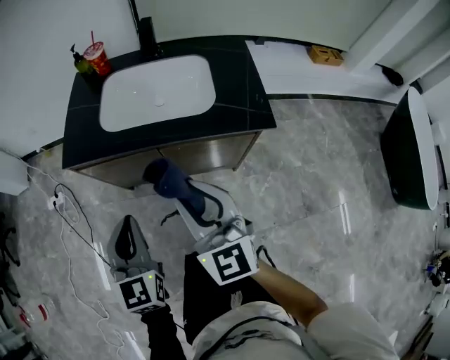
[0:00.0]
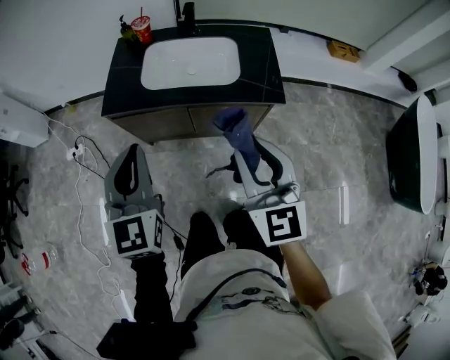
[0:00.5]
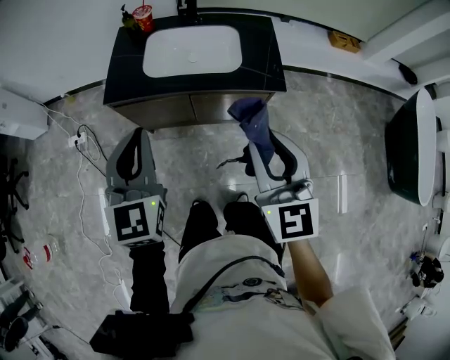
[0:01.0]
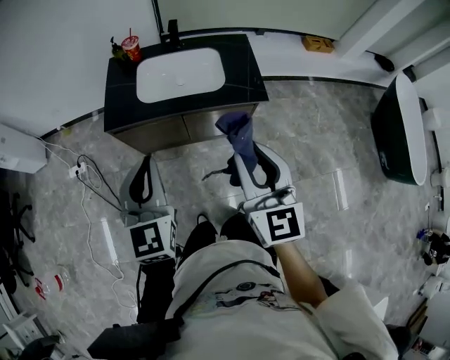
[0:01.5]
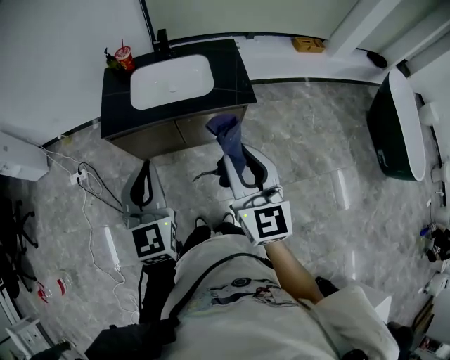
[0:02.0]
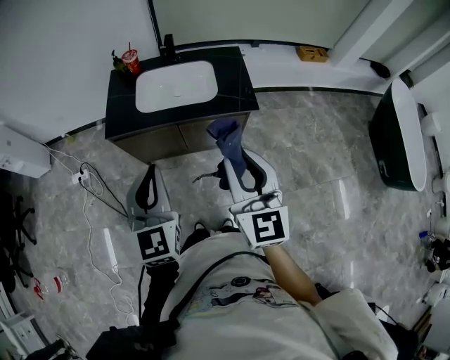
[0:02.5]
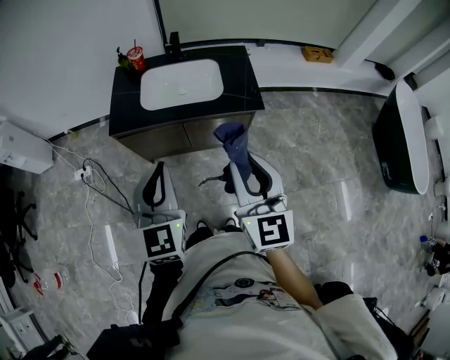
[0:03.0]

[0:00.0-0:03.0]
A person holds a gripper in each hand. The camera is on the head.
0:00.0 to 0:01.5: The left gripper shifts some 25 cm upward. Meanwhile the right gripper moves upward and backward, approximately 25 cm.
0:01.5 to 0:03.0: The left gripper ends up about 5 cm from where it was.

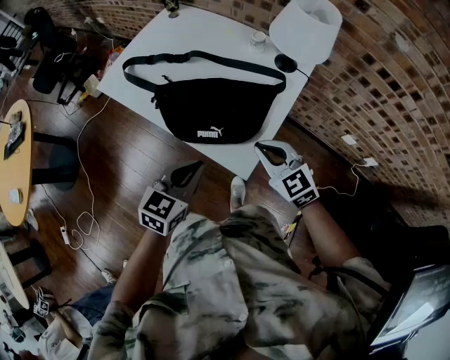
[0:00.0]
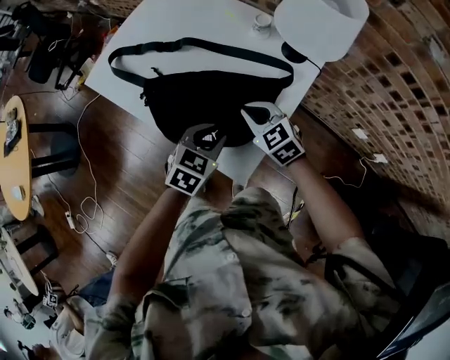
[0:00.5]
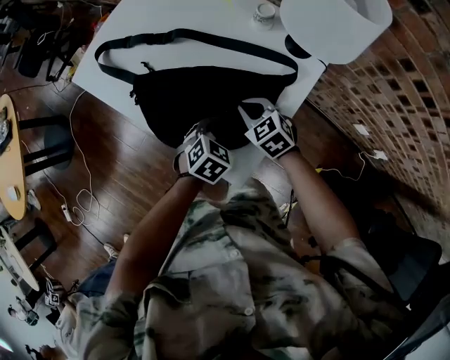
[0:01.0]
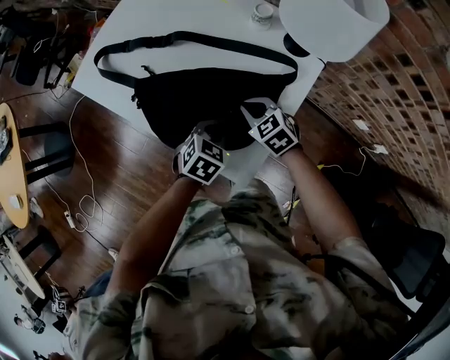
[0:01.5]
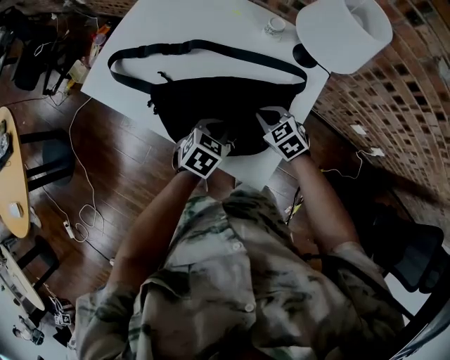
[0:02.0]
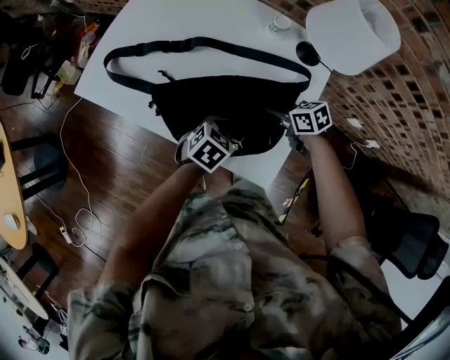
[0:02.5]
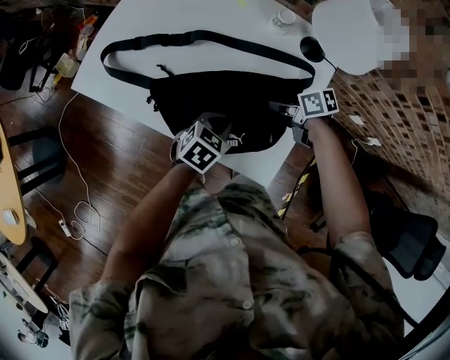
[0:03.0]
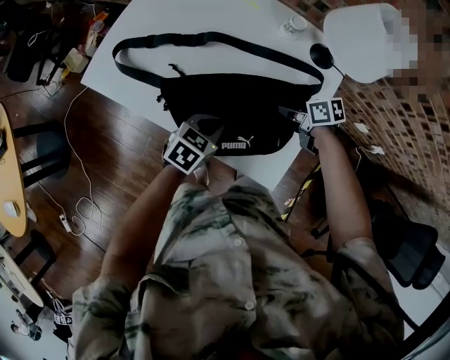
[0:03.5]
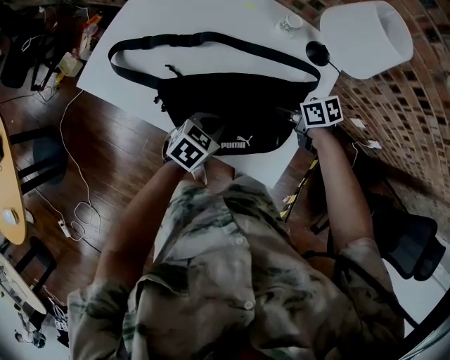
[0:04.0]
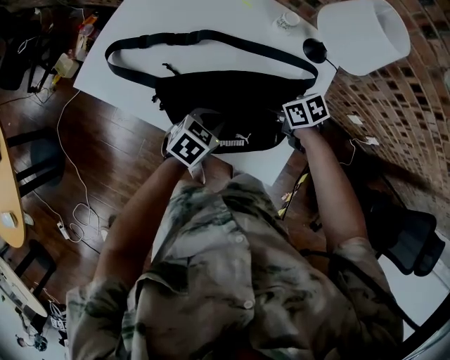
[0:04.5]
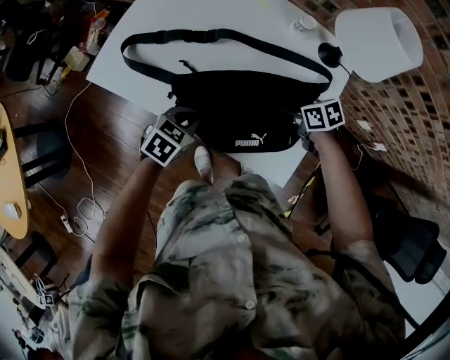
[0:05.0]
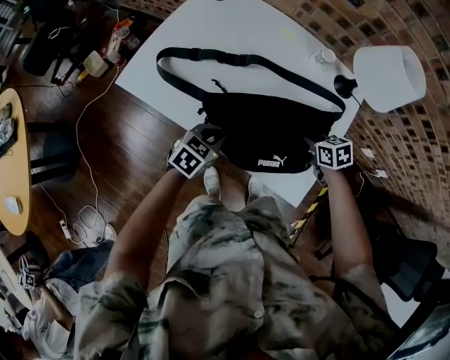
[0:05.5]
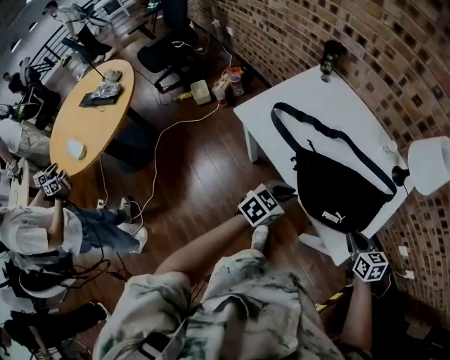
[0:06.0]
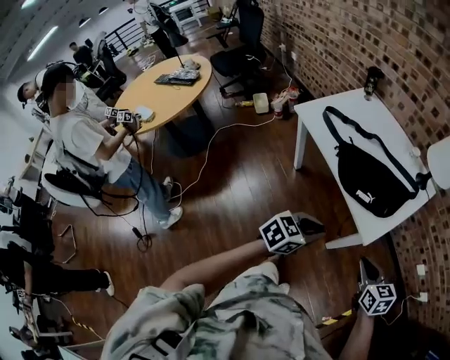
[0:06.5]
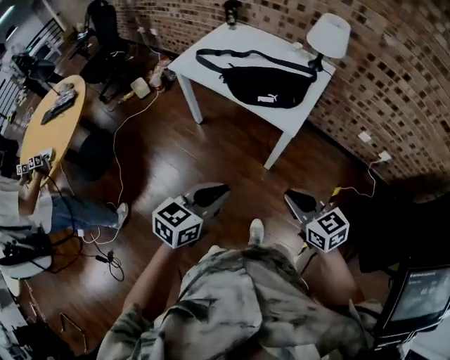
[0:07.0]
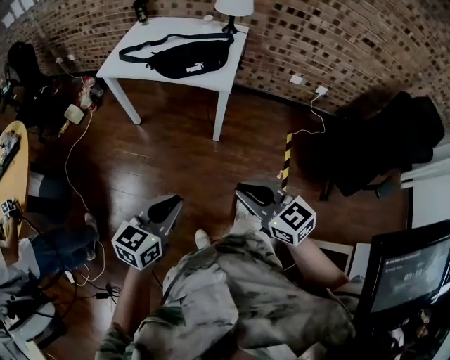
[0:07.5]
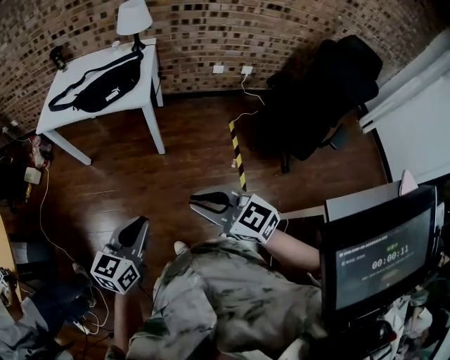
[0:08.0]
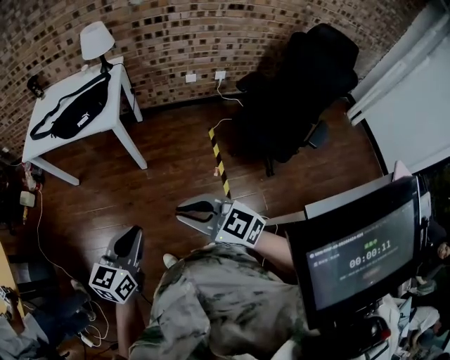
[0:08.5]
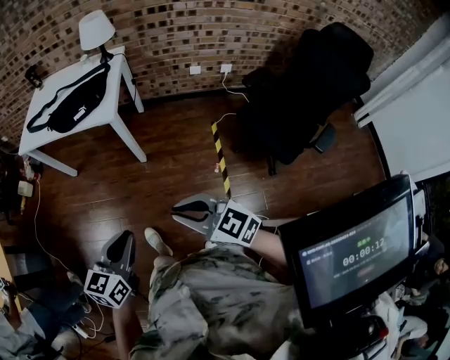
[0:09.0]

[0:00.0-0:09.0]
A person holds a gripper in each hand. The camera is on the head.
0:00.0 to 0:02.0: Both grippers move forward and downward, some 25 cm. The left gripper swivels roughly 20 degrees, while the right gripper turns by approximately 20 degrees.
0:02.0 to 0:04.5: The right gripper turns by about 40 degrees.
0:04.5 to 0:07.0: The pair of grippers is taken about 50 cm. The left gripper turns by some 30 degrees; the right gripper rotates approximately 40 degrees.
0:07.0 to 0:09.0: Both grippers move backward and to the right, approximately 30 cm.

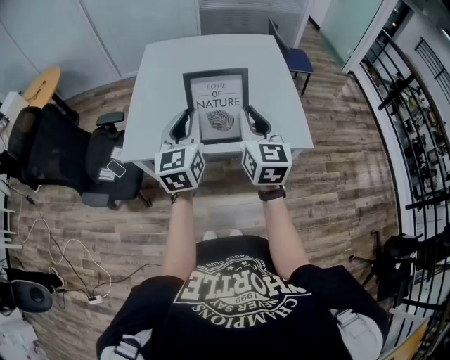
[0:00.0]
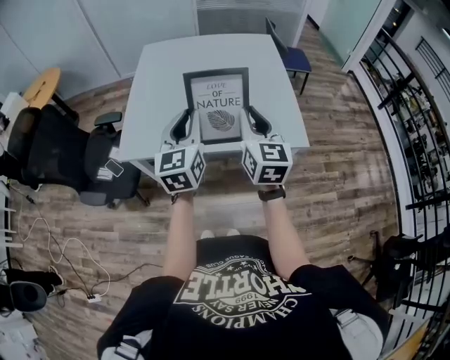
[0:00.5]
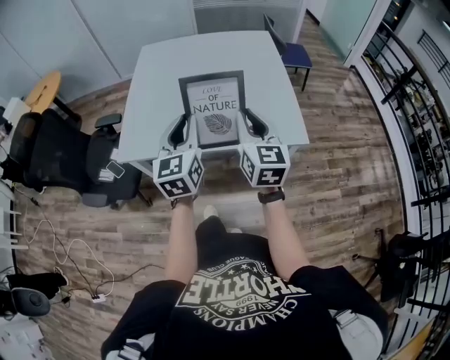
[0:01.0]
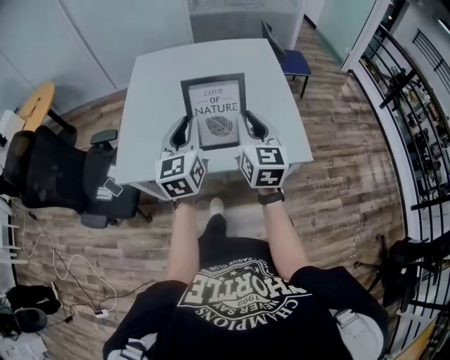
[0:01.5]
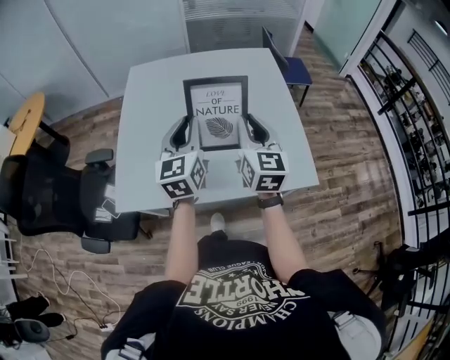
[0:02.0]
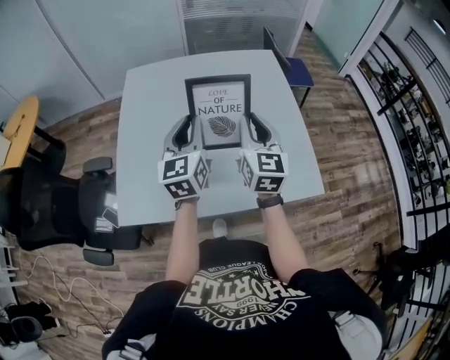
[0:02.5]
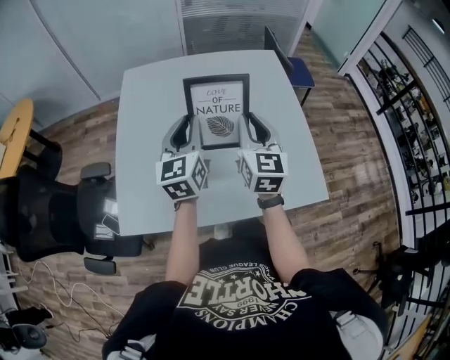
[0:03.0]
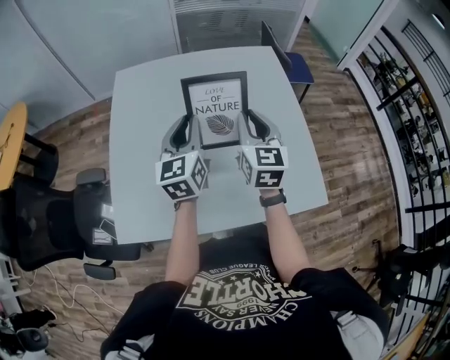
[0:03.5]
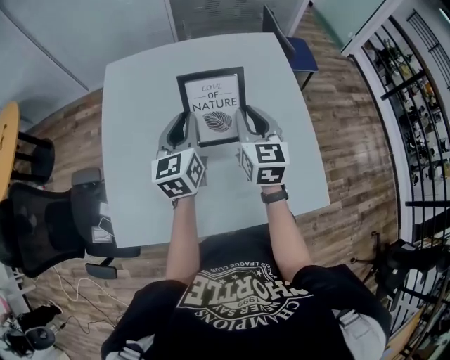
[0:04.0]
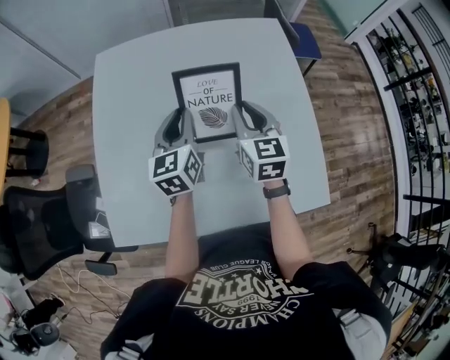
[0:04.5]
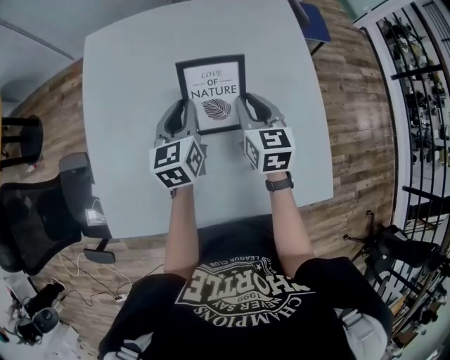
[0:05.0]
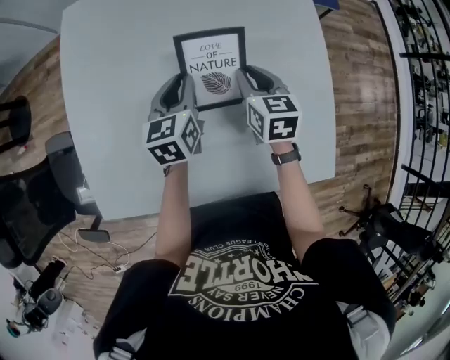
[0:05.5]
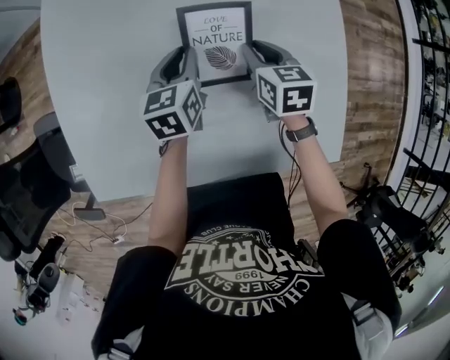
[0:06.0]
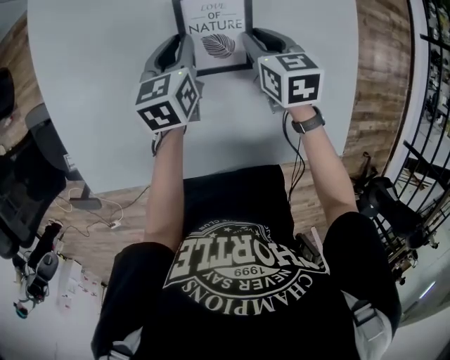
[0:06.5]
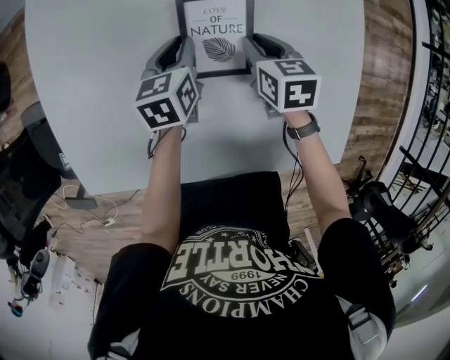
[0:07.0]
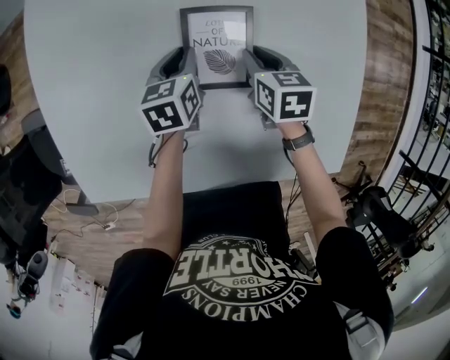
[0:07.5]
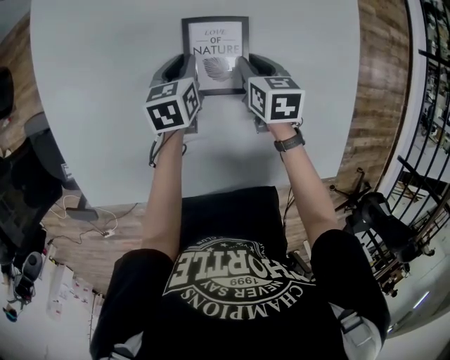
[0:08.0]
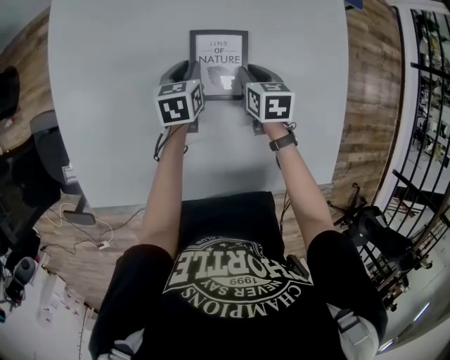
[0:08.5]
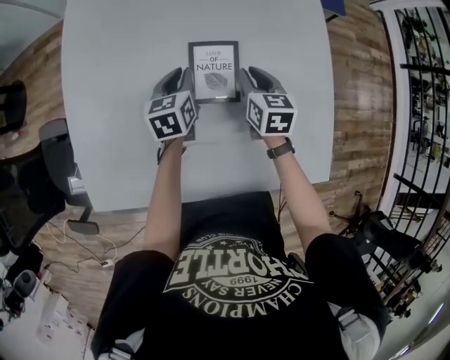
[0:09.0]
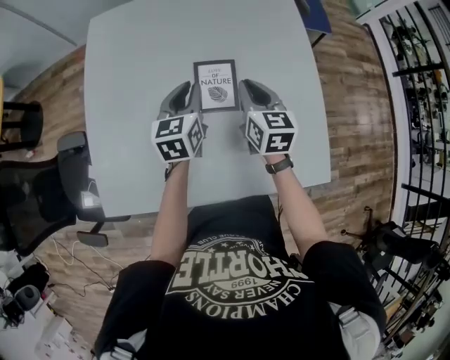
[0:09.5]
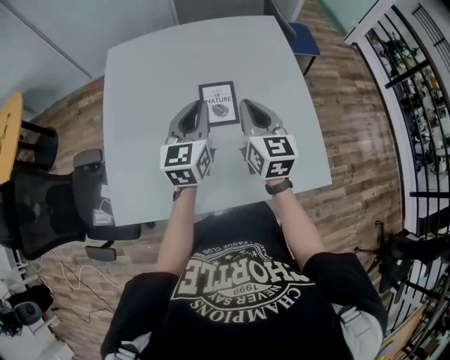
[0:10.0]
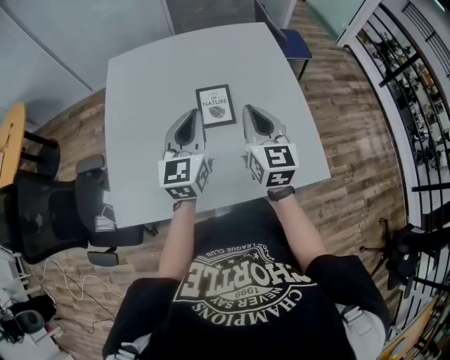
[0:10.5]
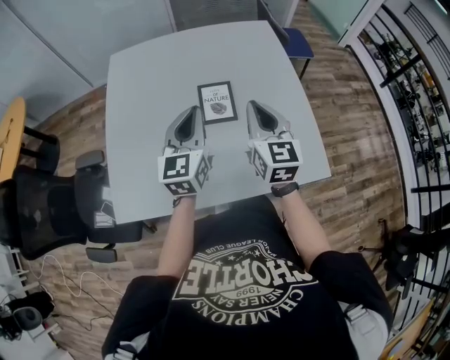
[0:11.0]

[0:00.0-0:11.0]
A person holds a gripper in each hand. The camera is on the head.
0:00.0 to 0:02.0: The grippers both shift forward by approximately 25 cm.
0:02.0 to 0:03.5: The grippers both shift forward by some 15 cm.
0:03.5 to 0:05.5: Both grippers travel together downward and forward, roughly 30 cm. The left gripper swivels about 30 degrees. The right gripper swivels roughly 30 degrees.
0:05.5 to 0:07.5: The grippers both shift downward by about 15 cm.
0:07.5 to 0:09.0: The two grippers go some 10 cm upward.
0:09.0 to 0:11.0: The two grippers go roughly 35 cm upward and backward. The left gripper tips its fingers upward by some 30 degrees. Meanwhile the right gripper tilts its fingers approximately 30 degrees upward.

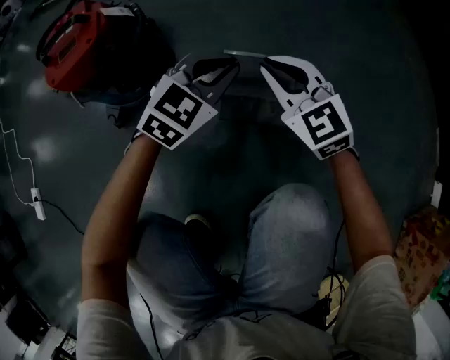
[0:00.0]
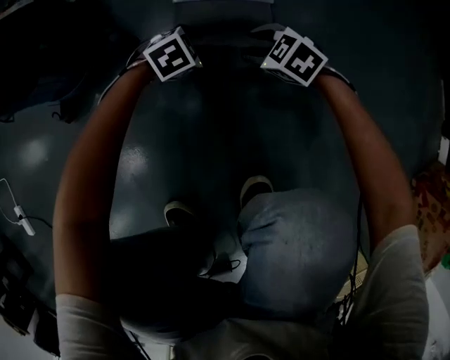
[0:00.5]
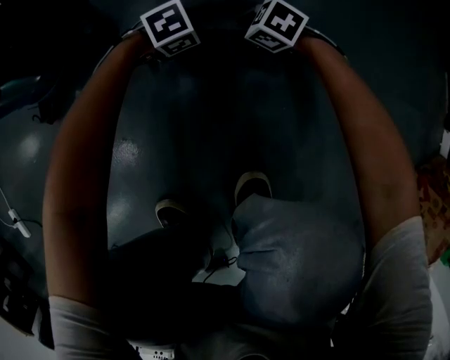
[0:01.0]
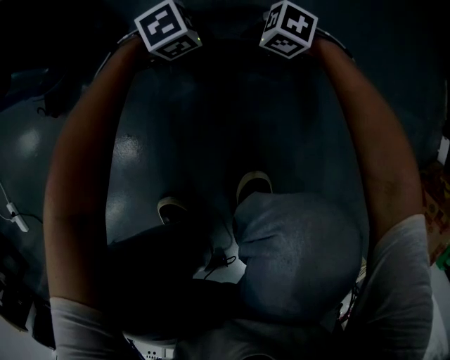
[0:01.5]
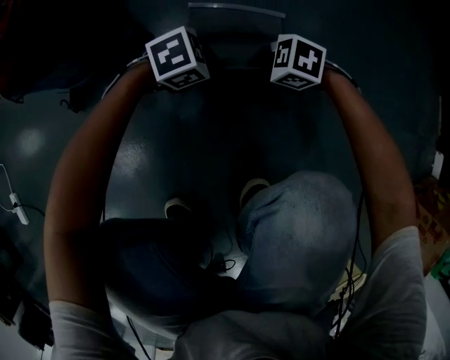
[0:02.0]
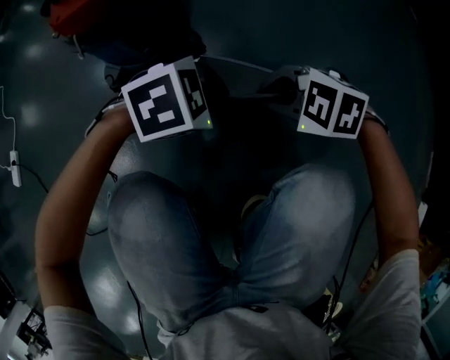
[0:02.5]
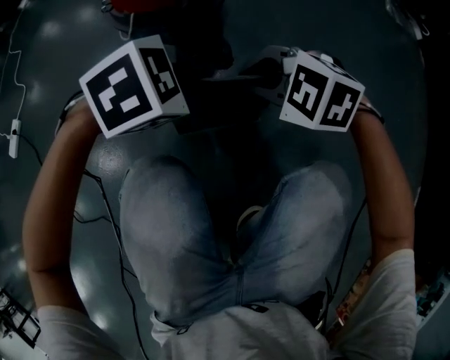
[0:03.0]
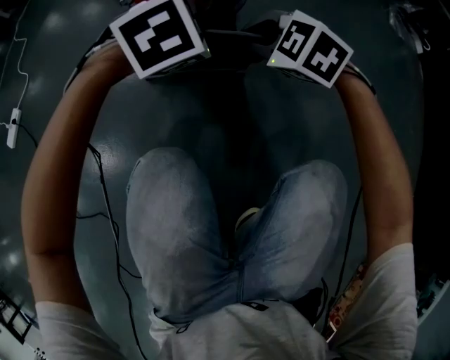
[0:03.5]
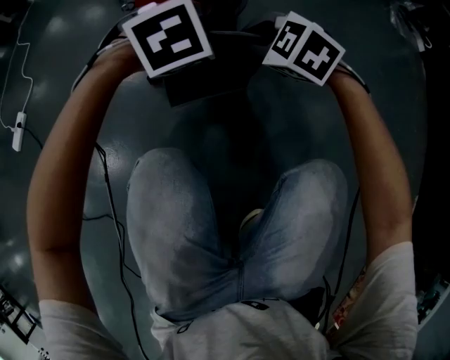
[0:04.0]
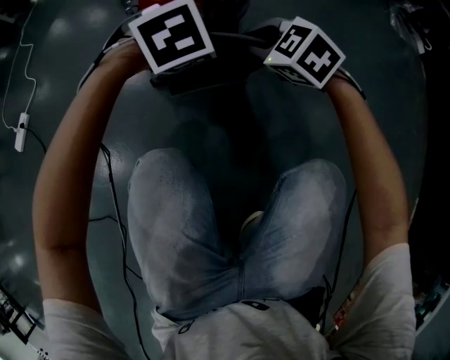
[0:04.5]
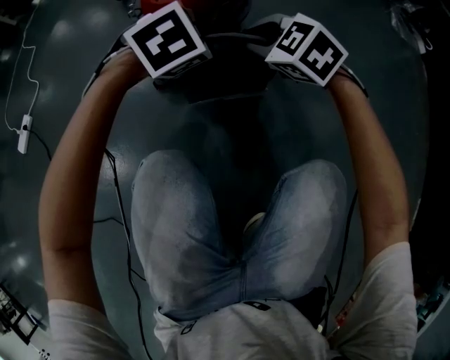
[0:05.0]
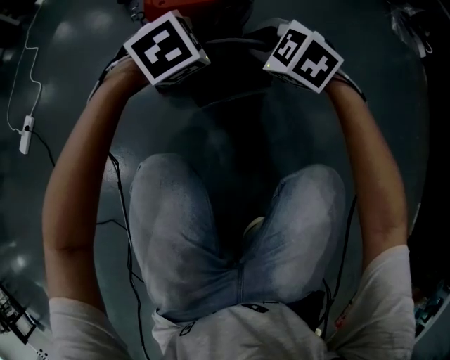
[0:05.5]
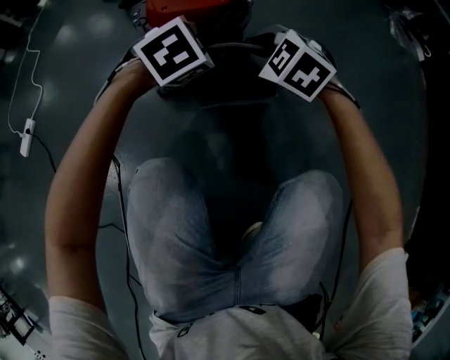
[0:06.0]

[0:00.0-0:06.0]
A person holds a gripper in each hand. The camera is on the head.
0:00.0 to 0:02.0: The two grippers go about 25 cm downward. The right gripper swivels roughly 60 degrees, and opens and closes again; the left gripper rotates about 50 degrees, and opens and closes again.
0:02.0 to 0:04.0: The left gripper is displaced upward by some 30 cm, and swivels roughly 50 degrees. The right gripper changes place by roughly 40 cm, and swivels about 40 degrees.
0:04.0 to 0:06.0: The grippers make only small movements.
